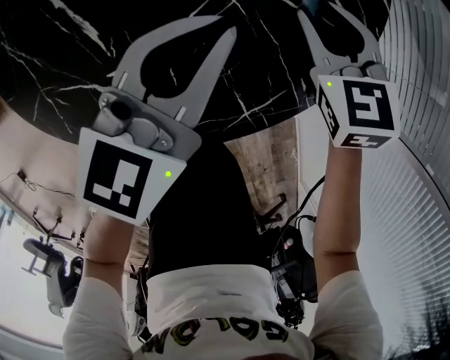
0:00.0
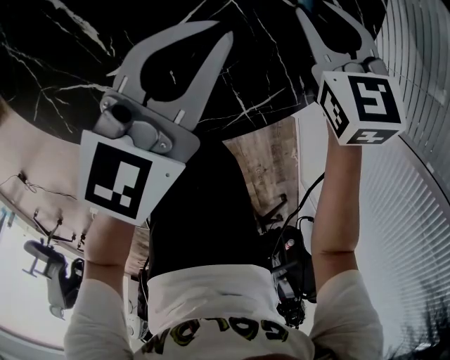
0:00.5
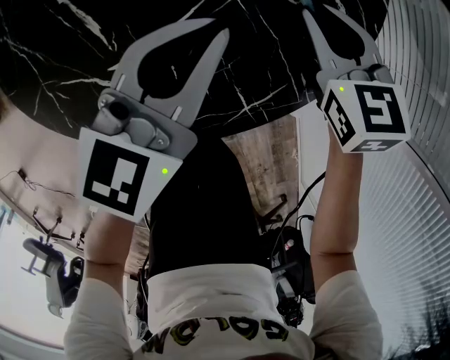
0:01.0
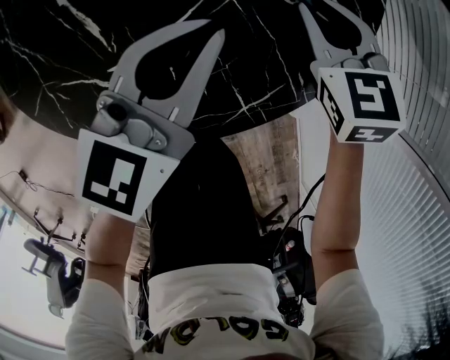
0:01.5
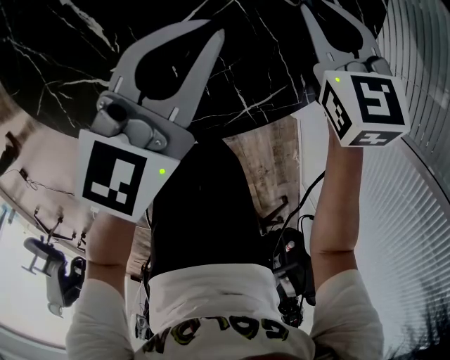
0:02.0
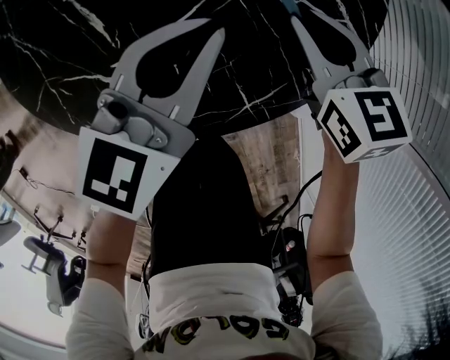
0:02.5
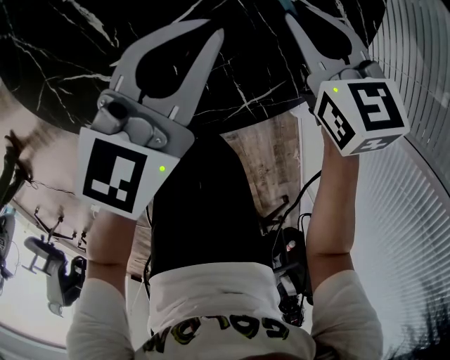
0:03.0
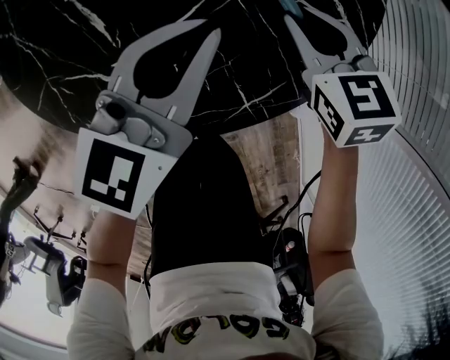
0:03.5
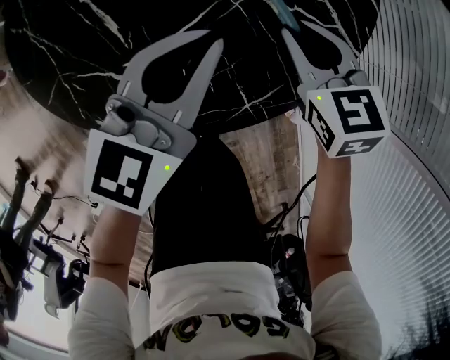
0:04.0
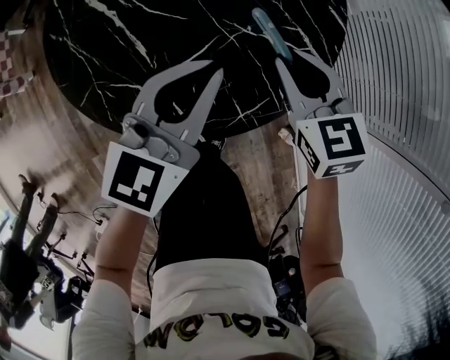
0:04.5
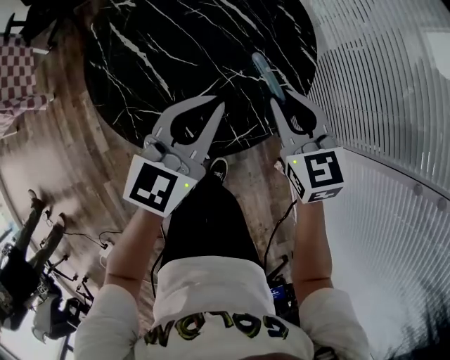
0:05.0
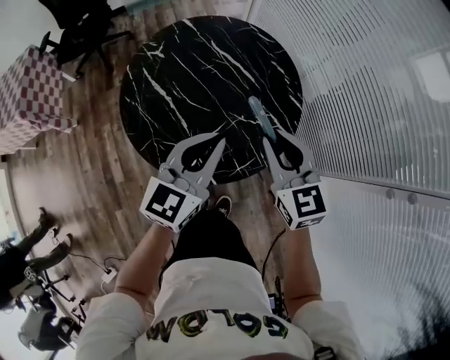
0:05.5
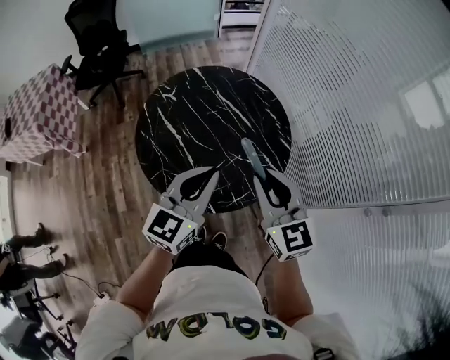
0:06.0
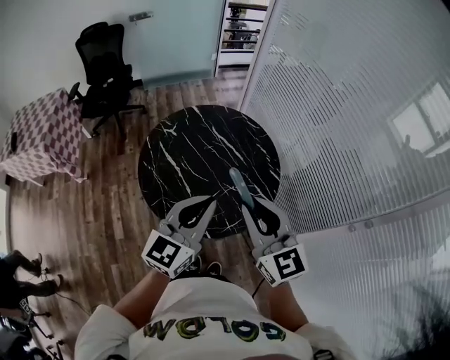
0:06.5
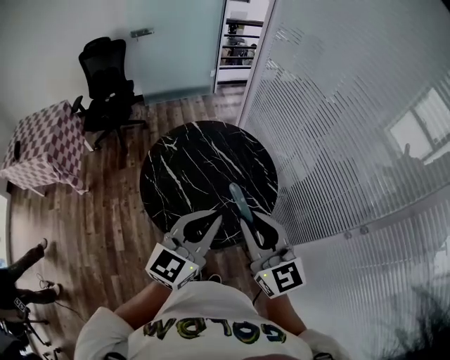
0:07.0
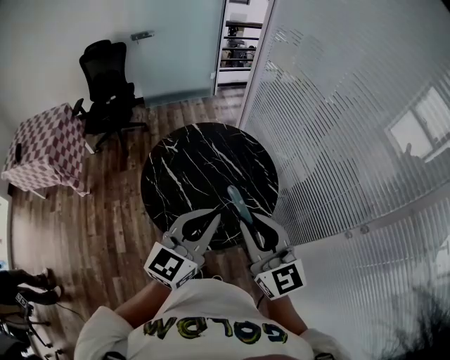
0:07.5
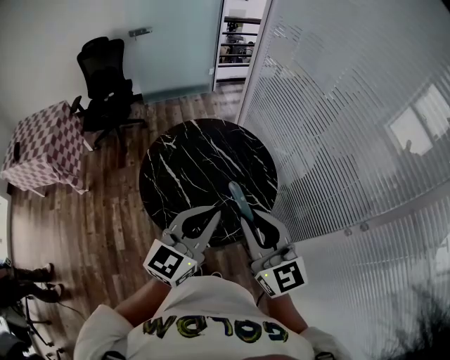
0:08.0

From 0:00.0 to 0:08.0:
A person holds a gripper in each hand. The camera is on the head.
From 0:00.0 to 0:04.0: There are only small adjustments of the grippers.
From 0:04.0 to 0:06.0: The grippers both shift upward by about 40 cm. The right gripper changes its angle by about 30 degrees.
From 0:06.0 to 0:08.0: The grippers both shift upward and backward by roughly 15 cm.

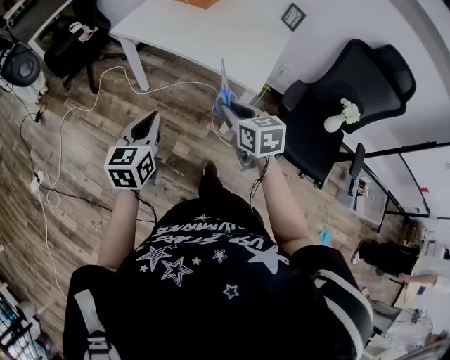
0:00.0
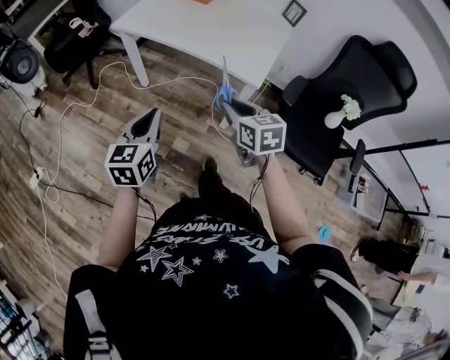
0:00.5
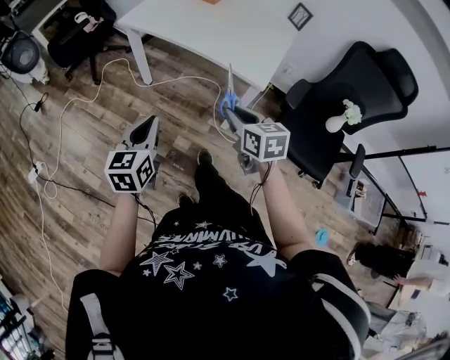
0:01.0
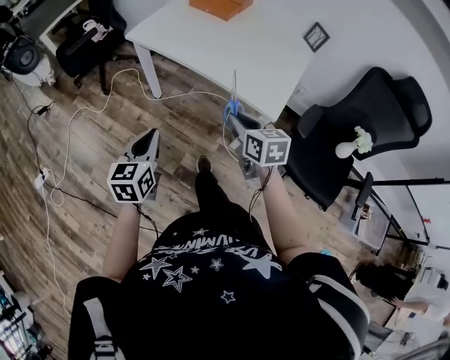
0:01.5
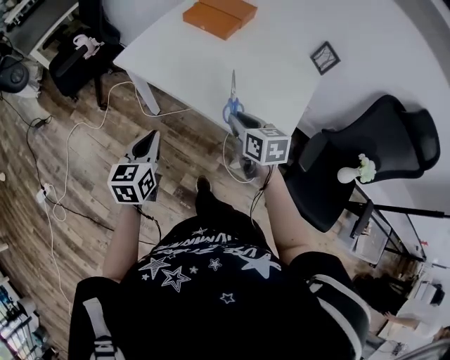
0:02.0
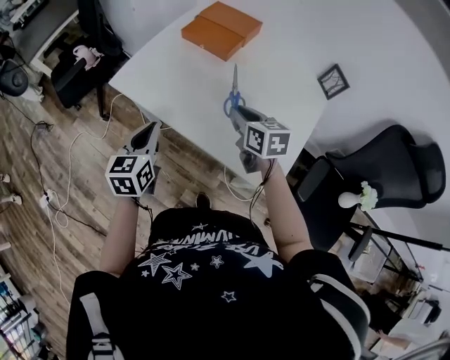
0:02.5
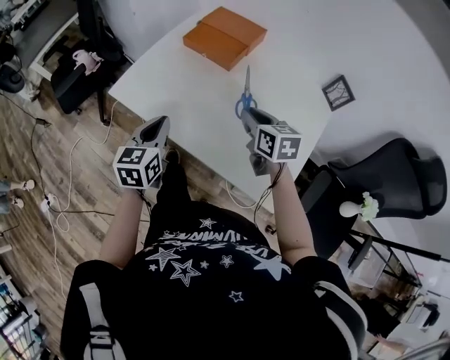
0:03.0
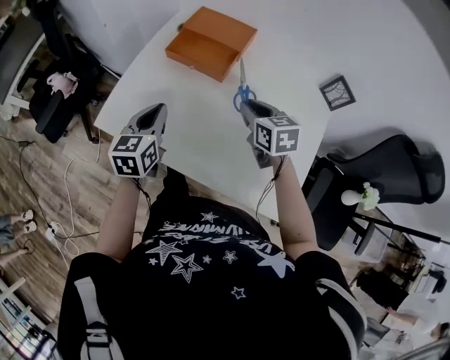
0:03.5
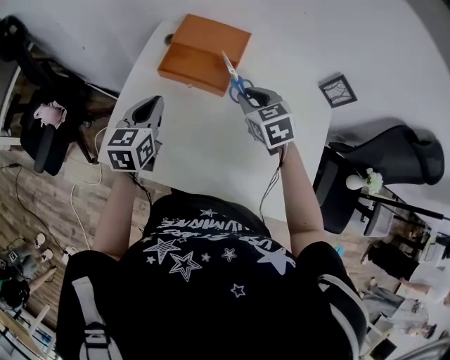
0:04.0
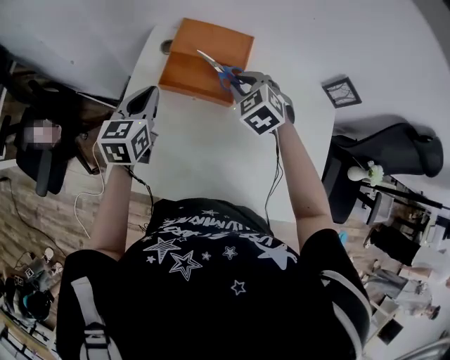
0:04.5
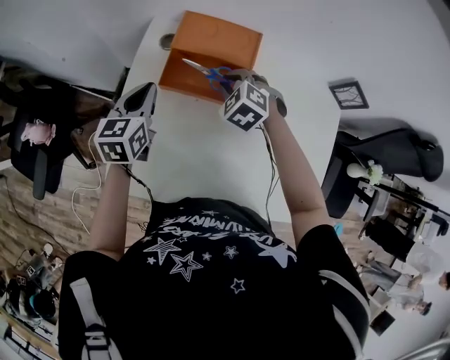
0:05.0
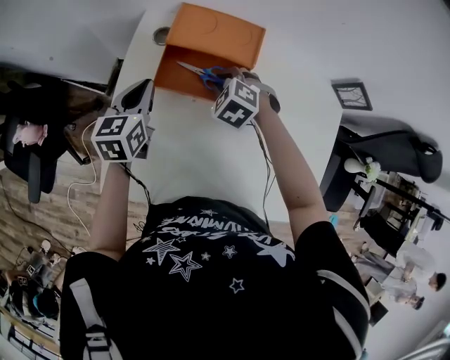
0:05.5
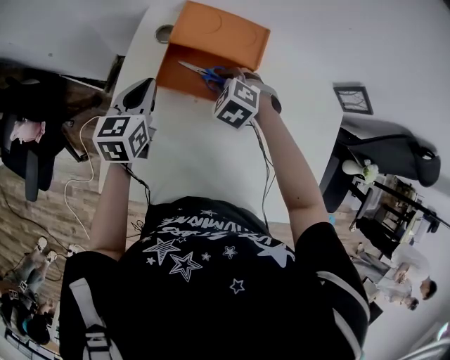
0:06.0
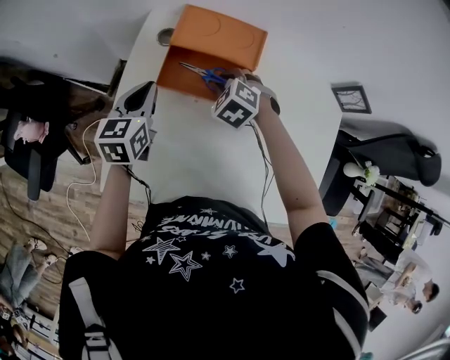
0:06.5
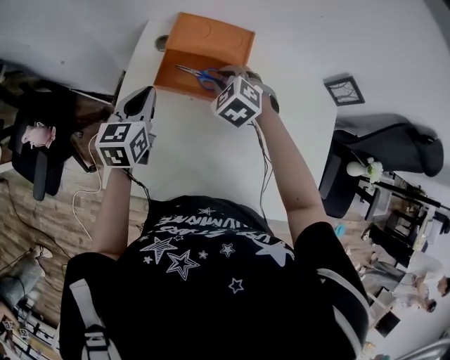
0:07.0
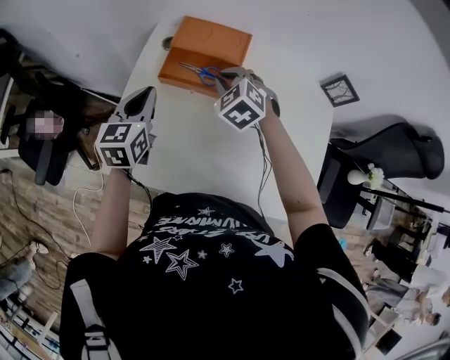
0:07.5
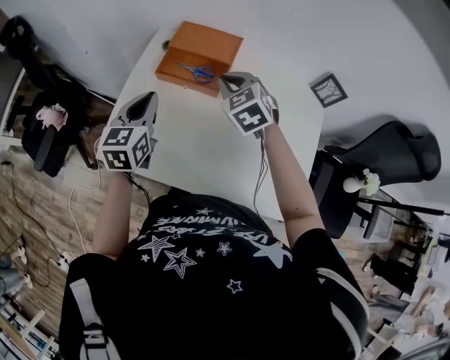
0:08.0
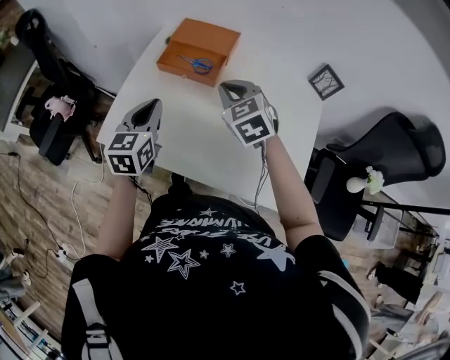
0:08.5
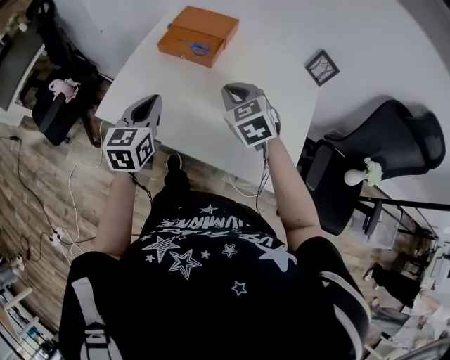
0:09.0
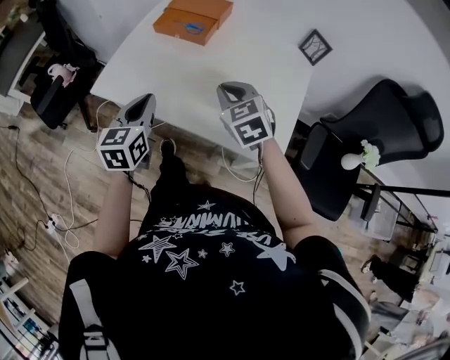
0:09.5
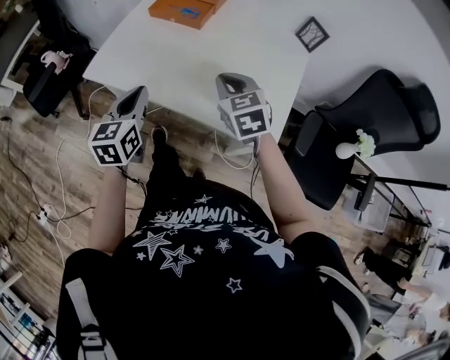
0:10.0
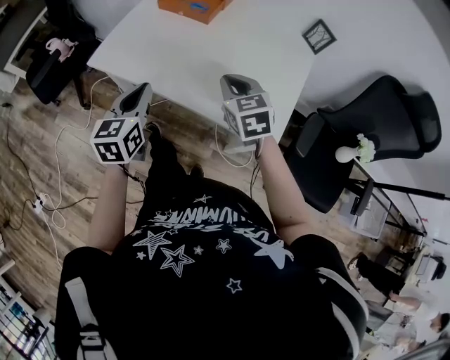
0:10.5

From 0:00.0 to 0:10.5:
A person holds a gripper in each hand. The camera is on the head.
From 0:00.0 to 0:02.0: The two grippers go roughly 30 cm forward.
From 0:02.0 to 0:04.0: Both grippers are carried forward, roughly 50 cm. The right gripper swivels some 30 degrees.
From 0:04.0 to 0:06.5: Both grippers travel together forward, downward and to the left, roughly 25 cm. The right gripper changes its angle by some 40 degrees.
From 0:06.5 to 0:08.5: The right gripper is displaced backward, upward and to the right by some 35 cm, and angles its fingers upward, by about 30 degrees. The left gripper heads backward, to the right and upward, covering approximately 35 cm.
From 0:08.5 to 0:10.5: The two grippers go some 25 cm backward.

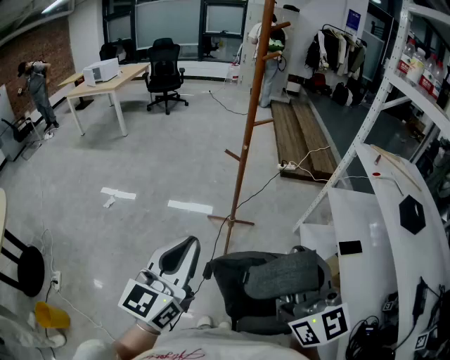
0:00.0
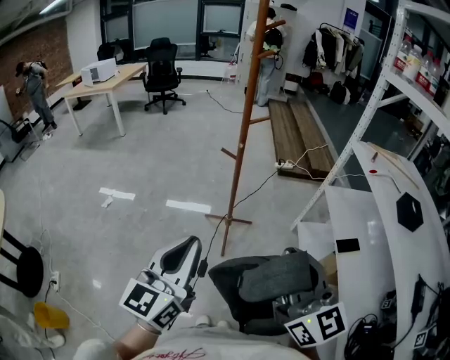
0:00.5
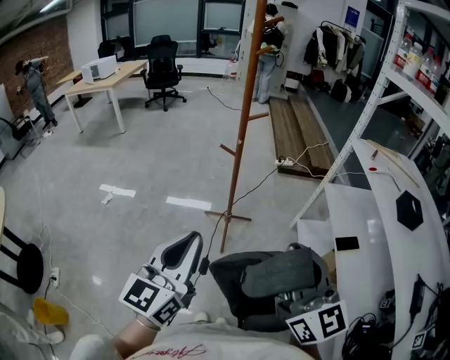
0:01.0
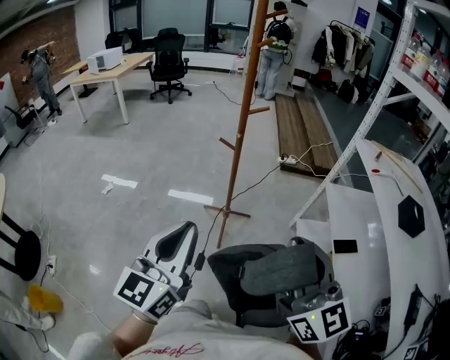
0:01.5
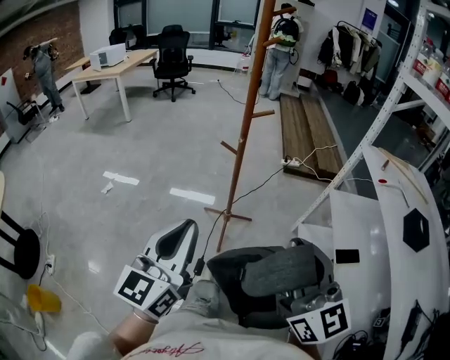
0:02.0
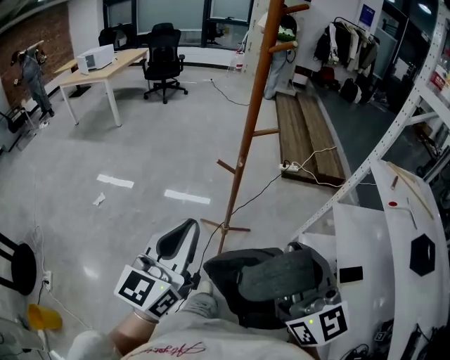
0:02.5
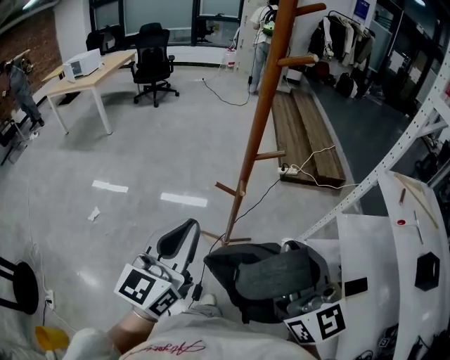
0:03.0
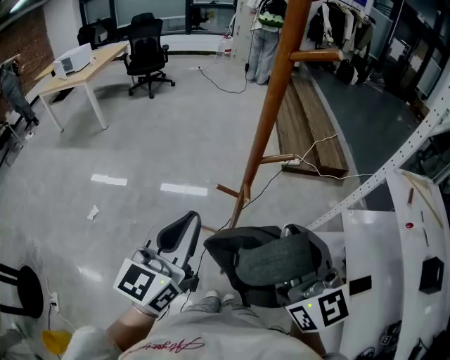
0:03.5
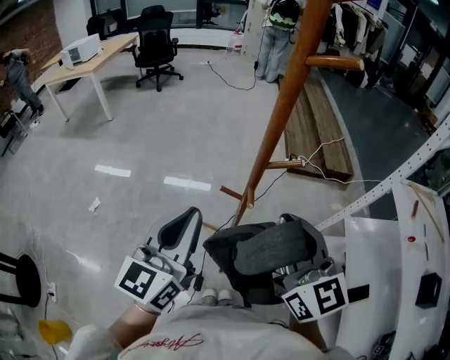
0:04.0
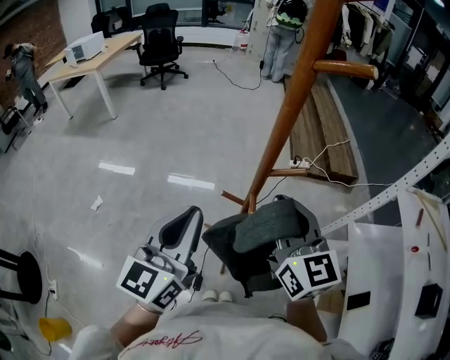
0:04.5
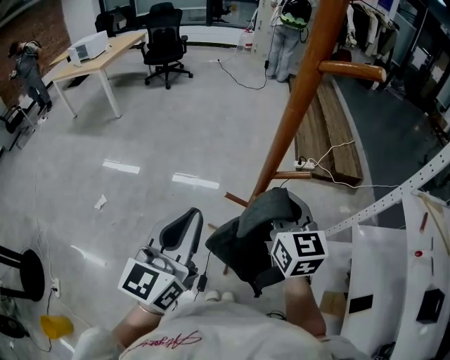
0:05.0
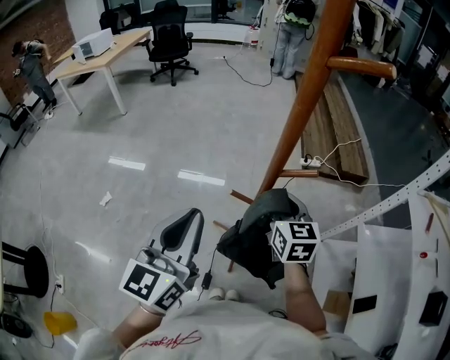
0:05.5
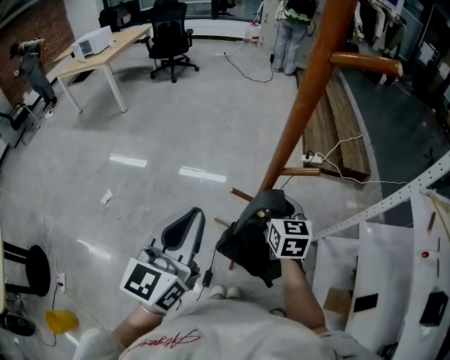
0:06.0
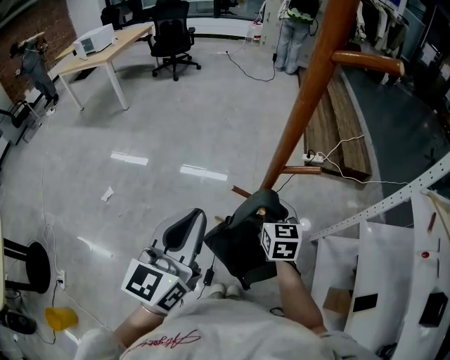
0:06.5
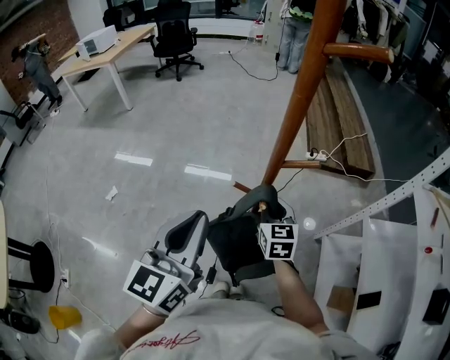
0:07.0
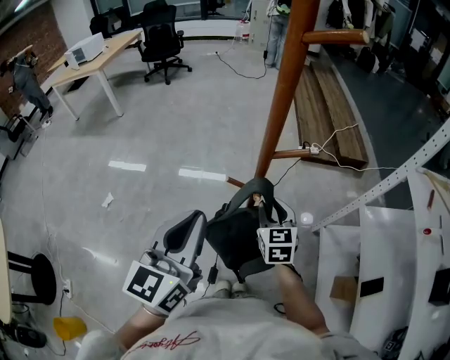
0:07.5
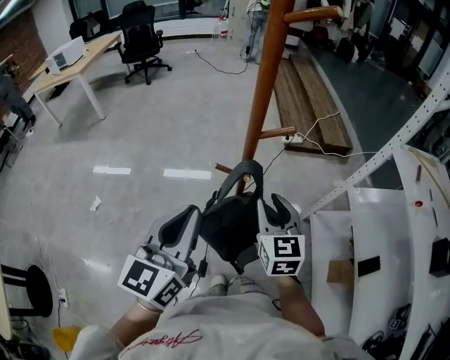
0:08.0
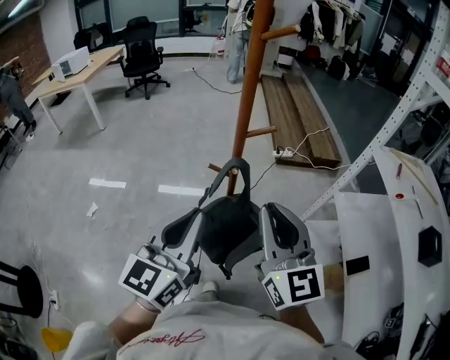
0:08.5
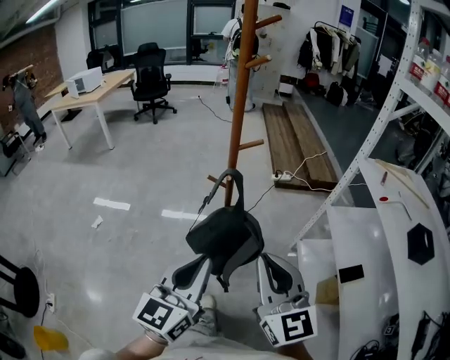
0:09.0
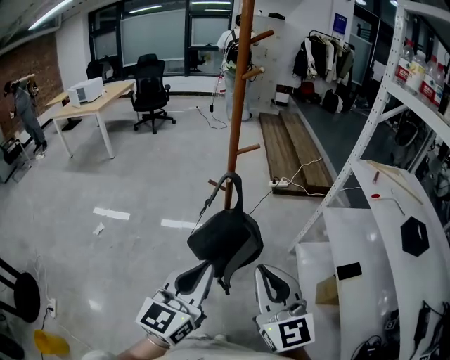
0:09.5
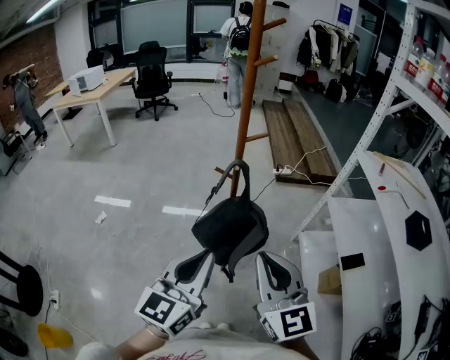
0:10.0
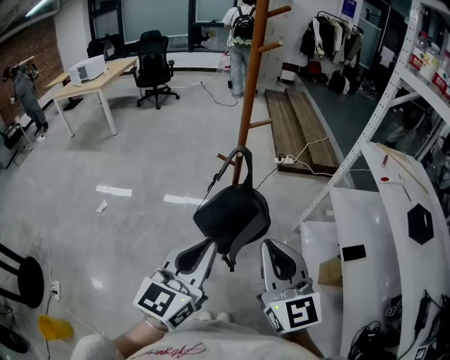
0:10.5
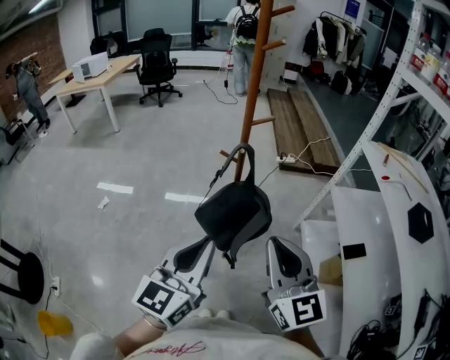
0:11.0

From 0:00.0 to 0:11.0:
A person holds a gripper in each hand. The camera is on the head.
From 0:00.0 to 0:02.0: The left gripper ends up some 5 cm from where it was, while the right gripper moves roughly 5 cm.
From 0:02.0 to 0:03.5: The two grippers go about 30 cm forward.
From 0:03.5 to 0:05.5: The right gripper moves forward and downward, roughly 25 cm, and turns by some 30 degrees.
From 0:05.5 to 0:07.5: The right gripper is displaced downward by roughly 10 cm.
From 0:07.5 to 0:09.0: The right gripper moves backward and upward, some 35 cm, and changes its angle by about 30 degrees; the left gripper is displaced backward and to the right by approximately 20 cm.
From 0:09.0 to 0:11.0: The grippers both shift backward by some 5 cm.
